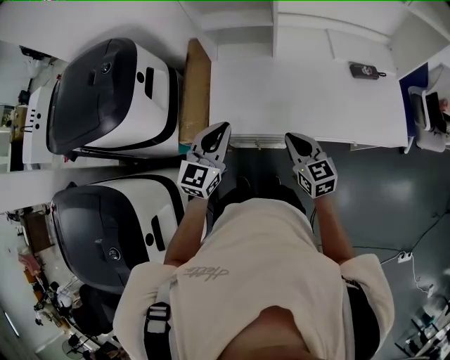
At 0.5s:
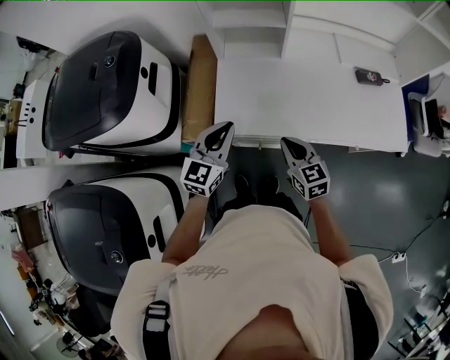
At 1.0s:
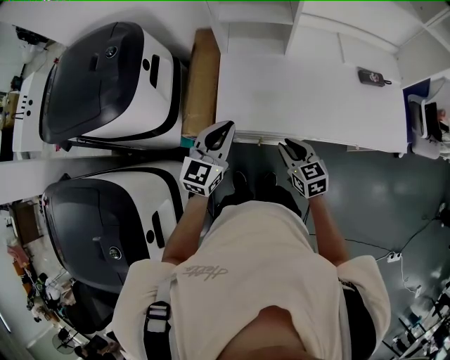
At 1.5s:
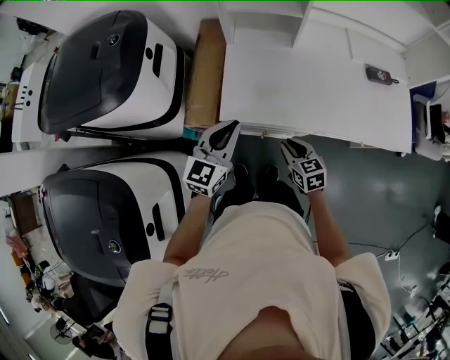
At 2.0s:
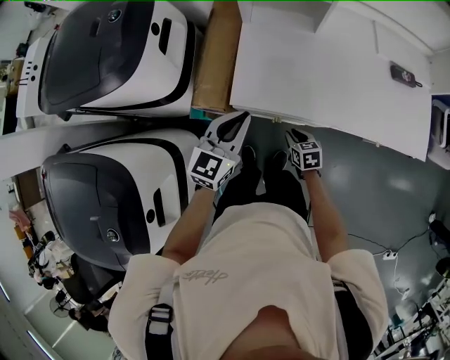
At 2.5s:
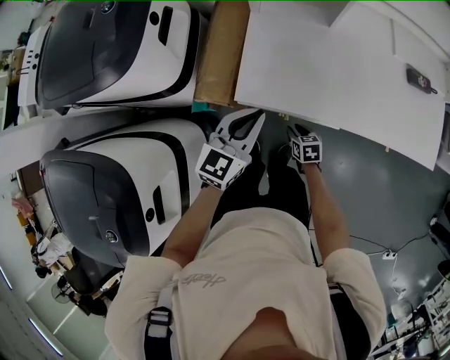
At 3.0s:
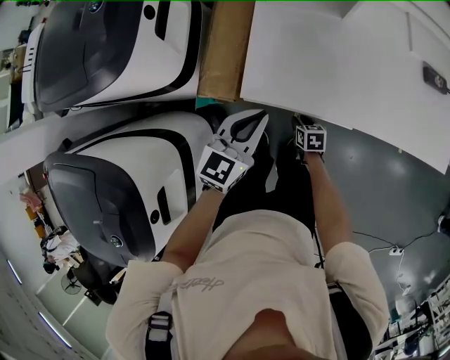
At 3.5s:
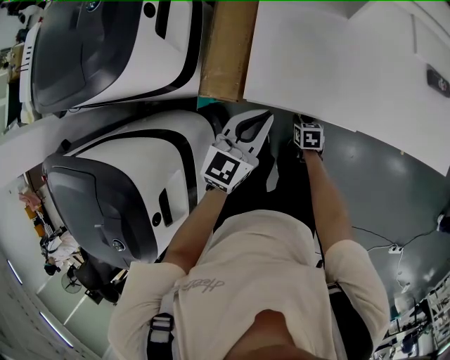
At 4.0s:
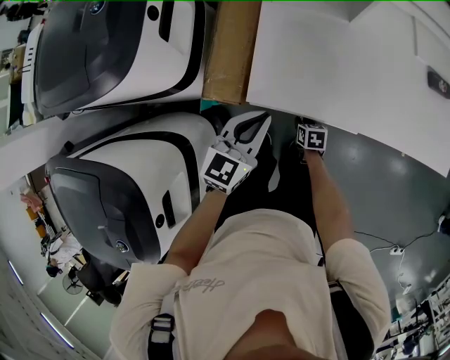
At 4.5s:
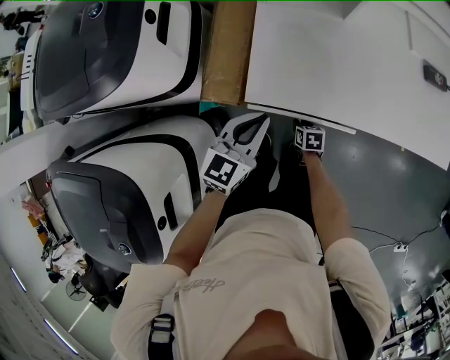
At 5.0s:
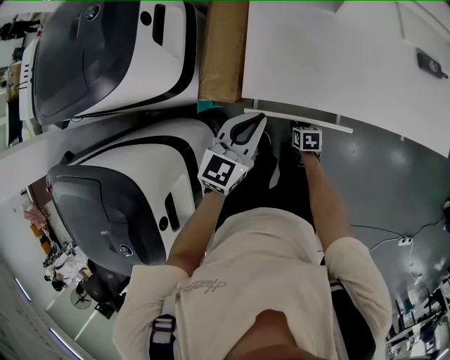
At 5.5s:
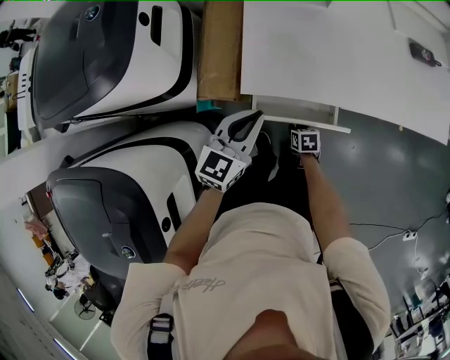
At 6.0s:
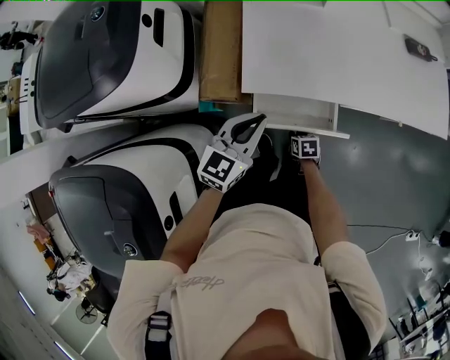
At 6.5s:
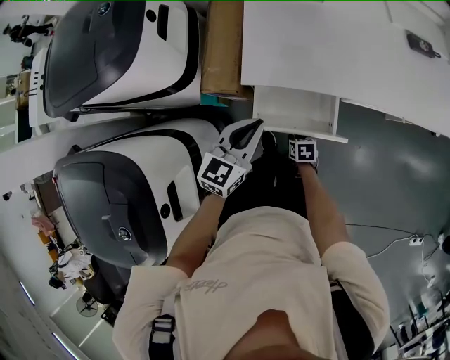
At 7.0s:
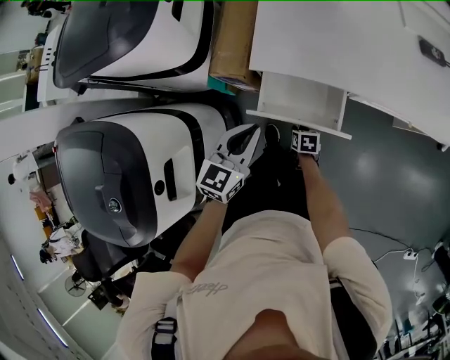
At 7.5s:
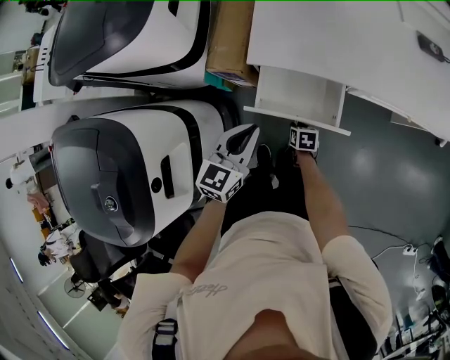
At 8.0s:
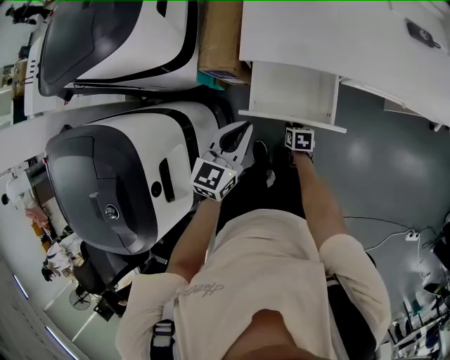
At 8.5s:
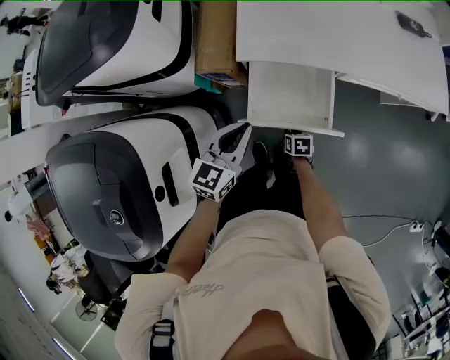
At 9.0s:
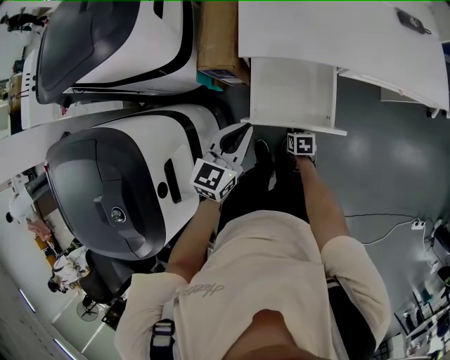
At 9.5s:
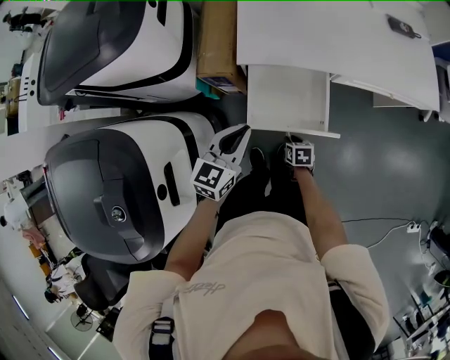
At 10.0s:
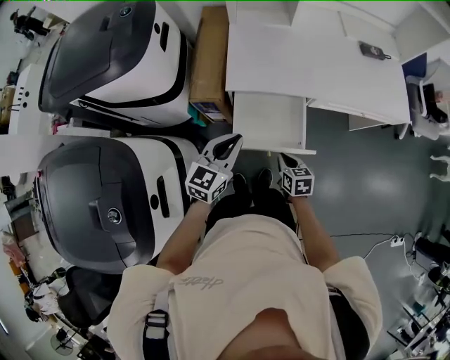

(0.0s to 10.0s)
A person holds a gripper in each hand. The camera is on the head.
0.0s - 2.0s: The right gripper travels downward by about 25 cm, turns by about 30 degrees, and opens up, while the left gripper moves downward and to the left, approximately 10 cm.
2.0s - 4.0s: The right gripper goes approximately 15 cm downward. Meanwhile the left gripper heads downward, covering some 10 cm.
4.0s - 6.0s: The left gripper shifts roughly 5 cm backward, while the right gripper moves backward, roughly 10 cm.
6.0s - 8.0s: The right gripper is displaced backward by roughly 10 cm. Meanwhile the left gripper travels backward by roughly 15 cm.
8.0s - 10.0s: The right gripper goes some 20 cm upward, and rotates roughly 20 degrees; the left gripper travels upward by approximately 5 cm.

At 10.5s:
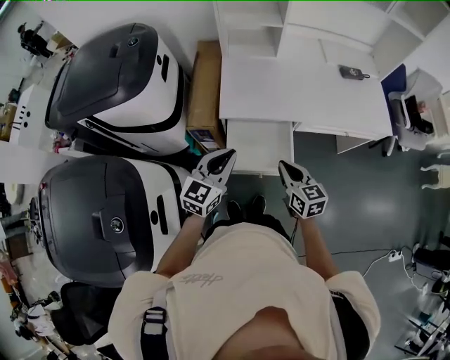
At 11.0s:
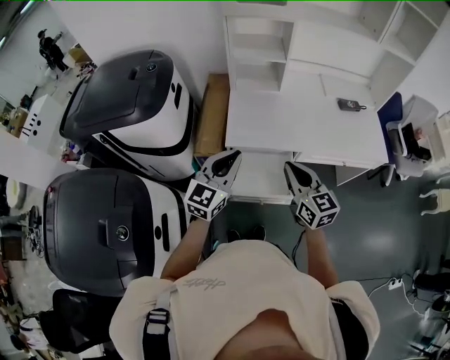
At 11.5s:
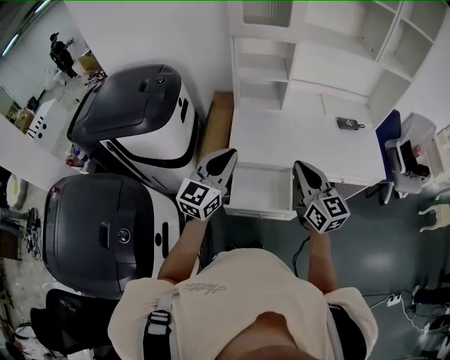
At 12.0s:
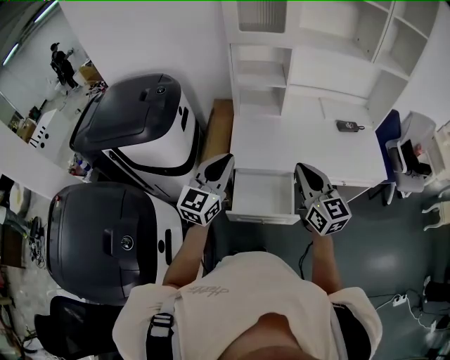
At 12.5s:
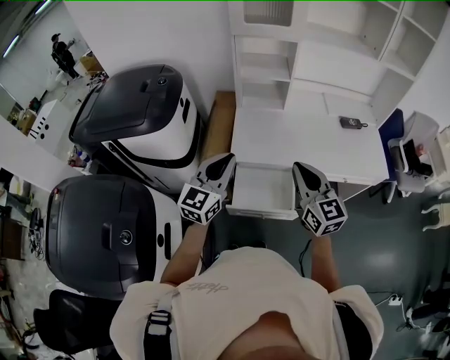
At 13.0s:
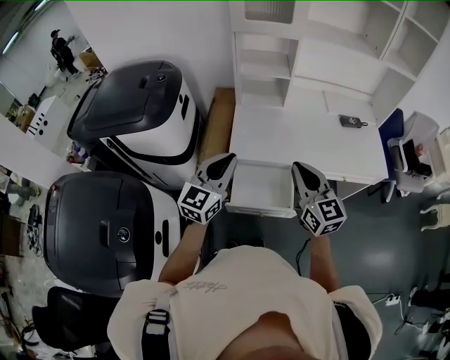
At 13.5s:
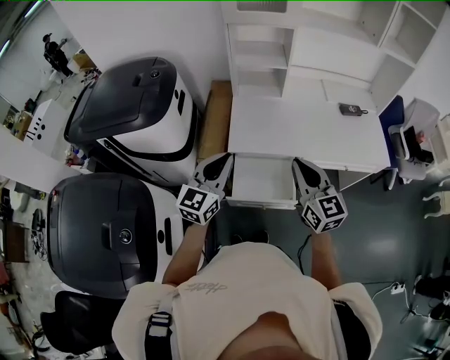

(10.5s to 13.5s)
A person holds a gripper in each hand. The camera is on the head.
10.5s - 12.0s: Both grippers move upward, approximately 20 cm. The right gripper swivels roughly 30 degrees.
12.0s - 13.5s: The grippers make only small movements.

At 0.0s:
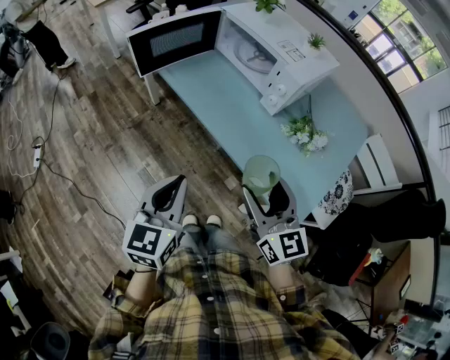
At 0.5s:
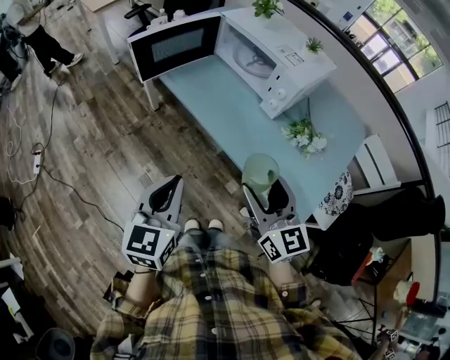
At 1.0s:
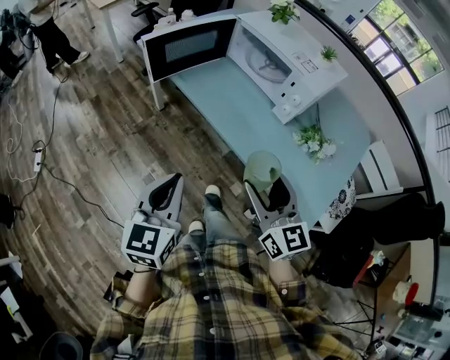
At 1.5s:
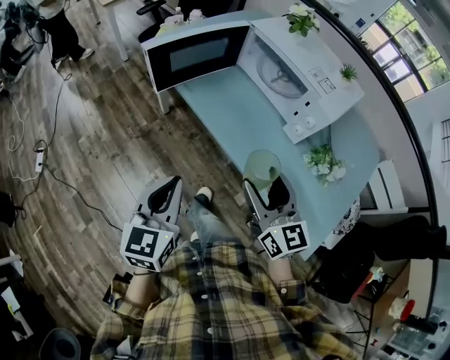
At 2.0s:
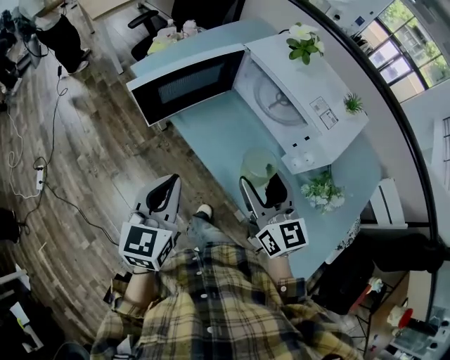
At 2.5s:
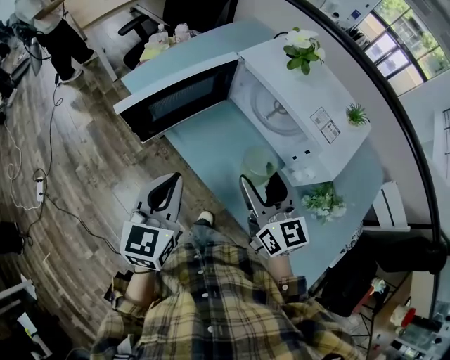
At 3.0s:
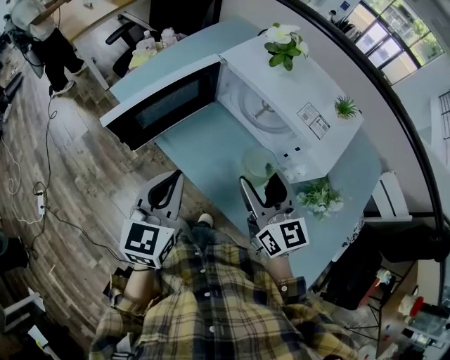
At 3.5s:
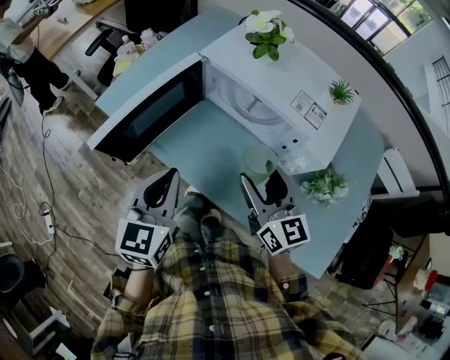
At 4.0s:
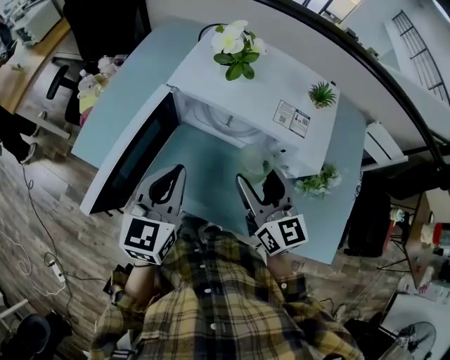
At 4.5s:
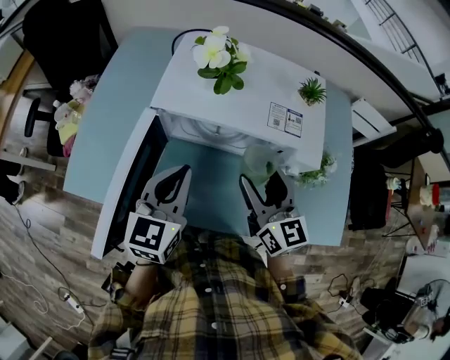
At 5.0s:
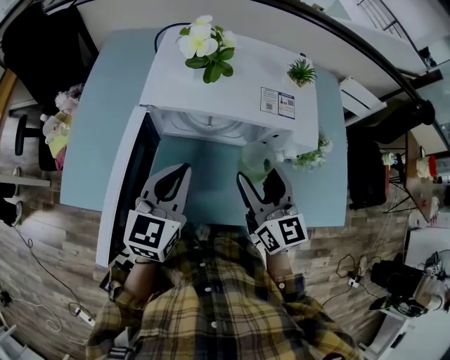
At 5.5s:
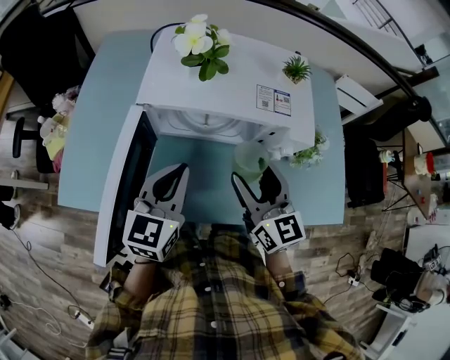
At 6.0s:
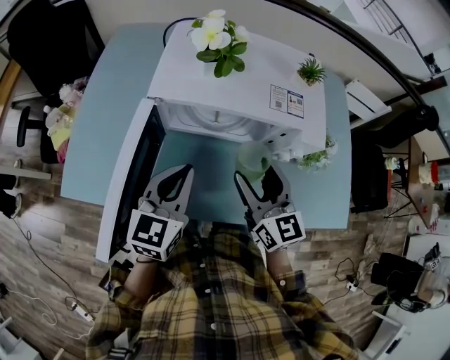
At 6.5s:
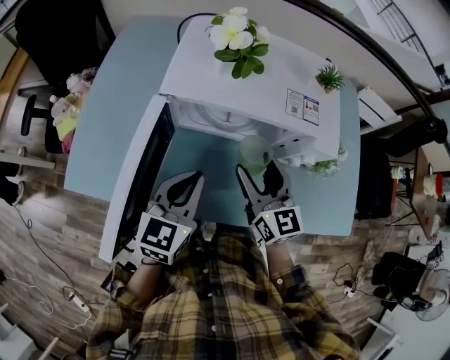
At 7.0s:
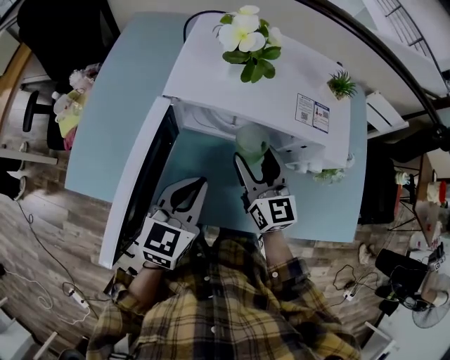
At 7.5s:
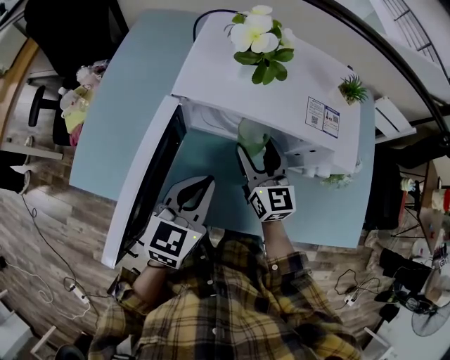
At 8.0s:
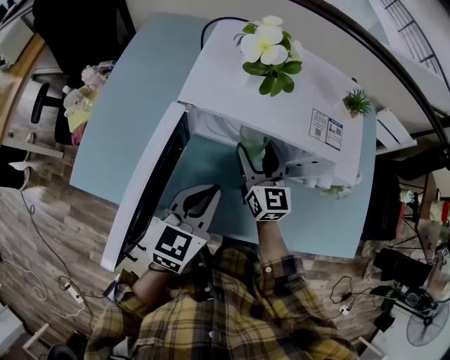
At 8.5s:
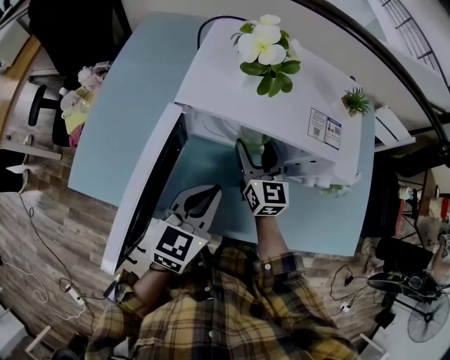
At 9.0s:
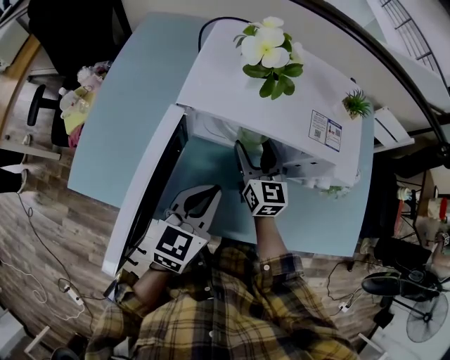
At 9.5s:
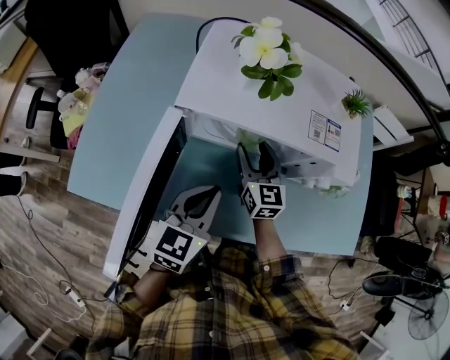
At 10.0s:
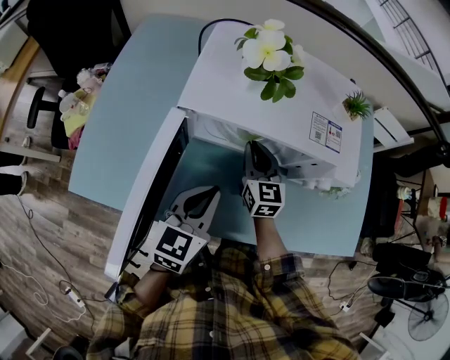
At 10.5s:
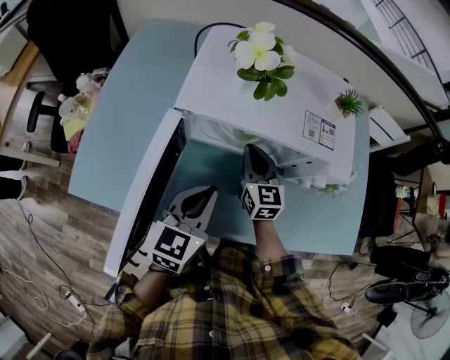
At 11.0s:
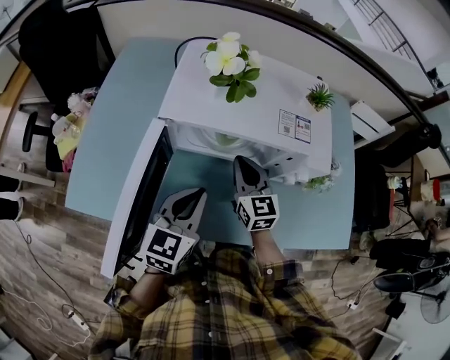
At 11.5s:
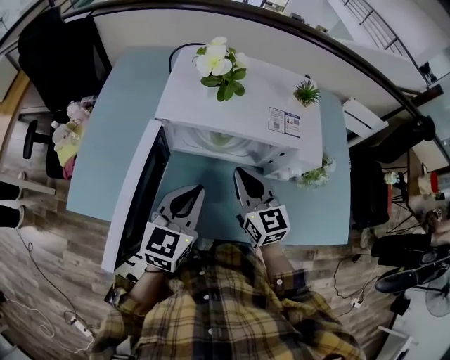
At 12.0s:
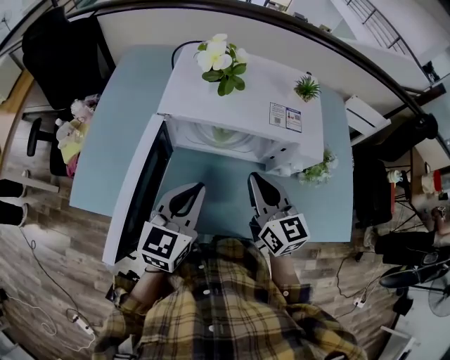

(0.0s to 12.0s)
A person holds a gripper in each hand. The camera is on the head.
0.0s - 2.0s: The grippers both shift forward by some 25 cm.
2.0s - 4.0s: The left gripper moves some 25 cm, and rotates roughly 30 degrees; the right gripper shifts by about 15 cm, and changes its angle by roughly 30 degrees.
4.0s - 6.0s: The left gripper changes place by roughly 5 cm.
6.0s - 8.0s: The right gripper is displaced forward, downward and to the left by about 15 cm.
8.0s - 10.0s: The right gripper closes.
10.0s - 12.0s: The left gripper is displaced upward by approximately 5 cm; the right gripper is displaced upward, backward and to the right by about 20 cm.

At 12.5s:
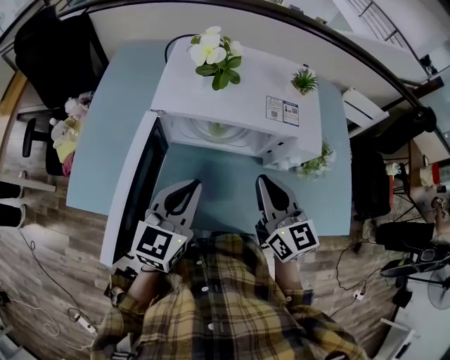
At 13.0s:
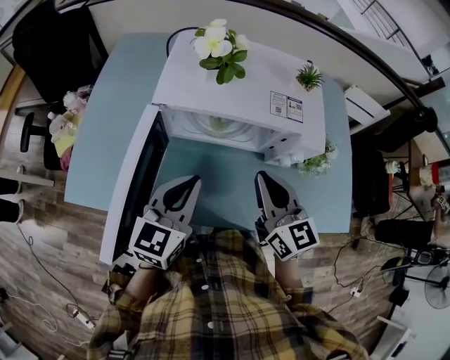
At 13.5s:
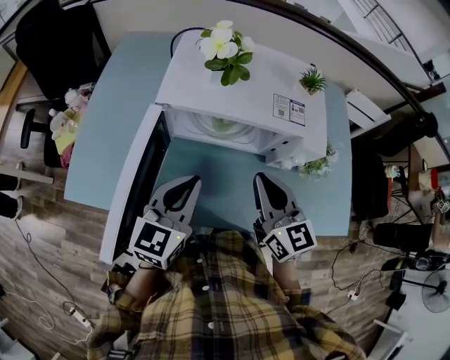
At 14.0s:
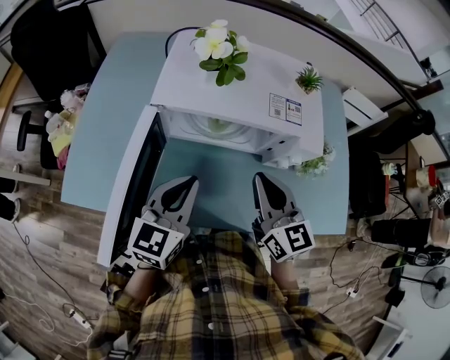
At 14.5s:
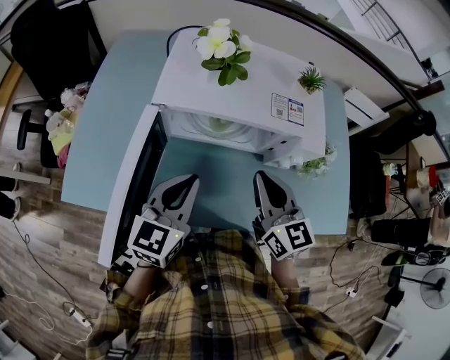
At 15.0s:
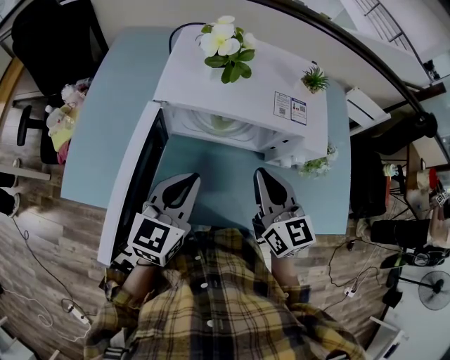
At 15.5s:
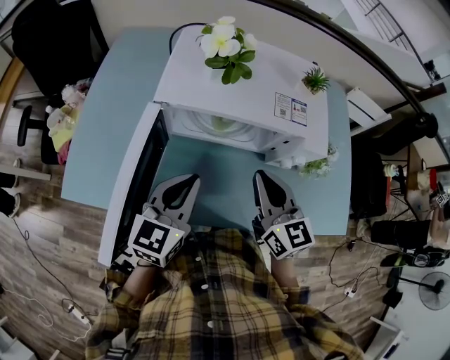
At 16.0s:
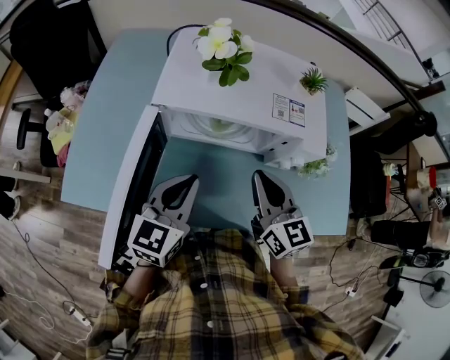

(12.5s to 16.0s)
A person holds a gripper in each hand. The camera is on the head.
12.5s - 14.5s: The grippers move only a little.
14.5s - 16.0s: The two grippers keep their place.
